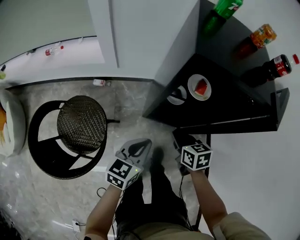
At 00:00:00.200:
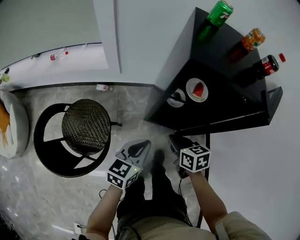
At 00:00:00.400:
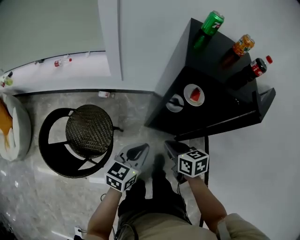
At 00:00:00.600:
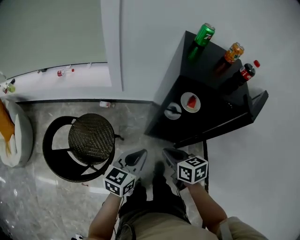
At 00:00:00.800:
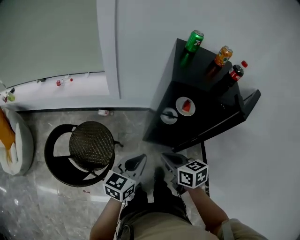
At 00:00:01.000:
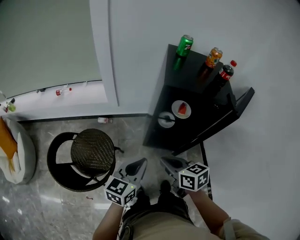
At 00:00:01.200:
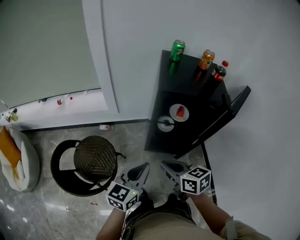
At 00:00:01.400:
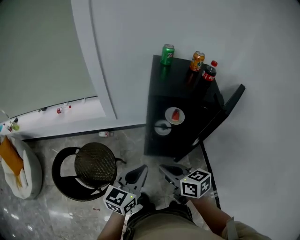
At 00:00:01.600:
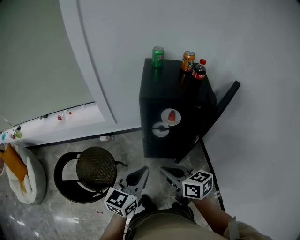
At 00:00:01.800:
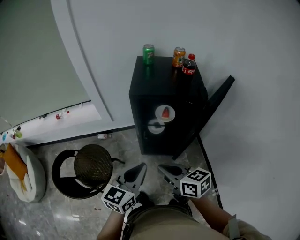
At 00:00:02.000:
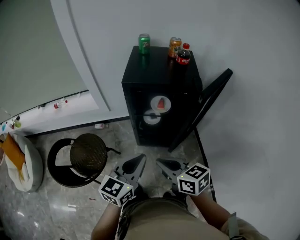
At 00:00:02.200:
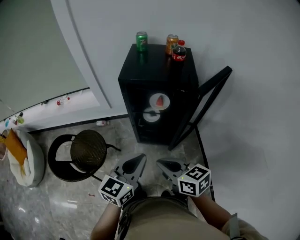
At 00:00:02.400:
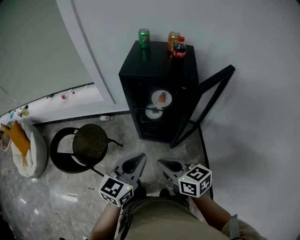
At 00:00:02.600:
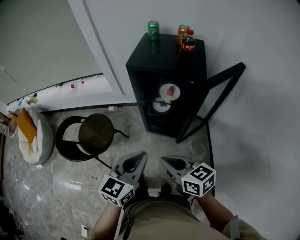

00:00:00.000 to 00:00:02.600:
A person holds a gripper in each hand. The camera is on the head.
00:00:00.000 to 00:00:01.200: The grippers both shift upward and backward by approximately 20 cm. The right gripper turns by roughly 20 degrees.
00:00:01.200 to 00:00:02.600: Both grippers travel together to the right and backward, about 20 cm.

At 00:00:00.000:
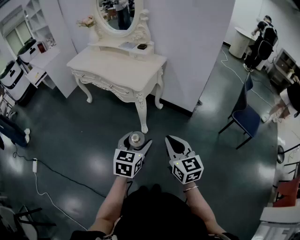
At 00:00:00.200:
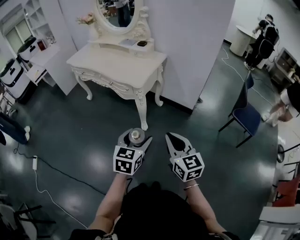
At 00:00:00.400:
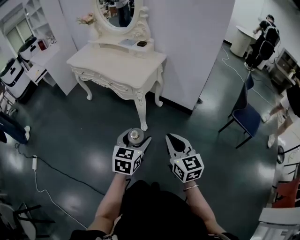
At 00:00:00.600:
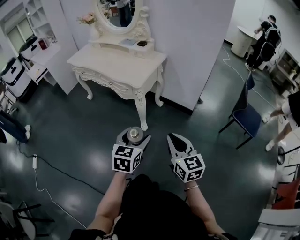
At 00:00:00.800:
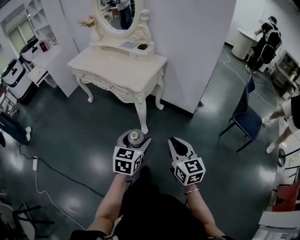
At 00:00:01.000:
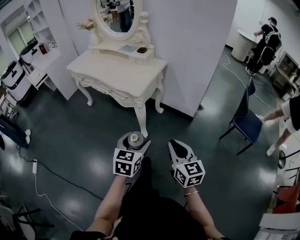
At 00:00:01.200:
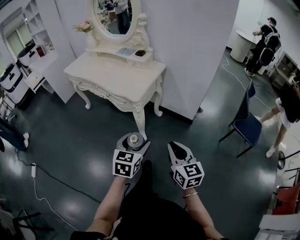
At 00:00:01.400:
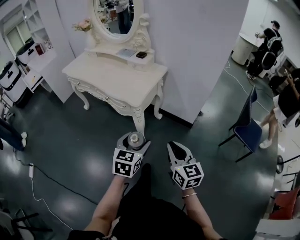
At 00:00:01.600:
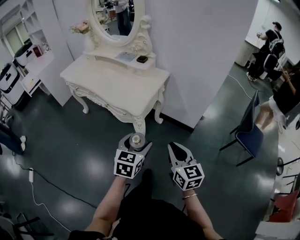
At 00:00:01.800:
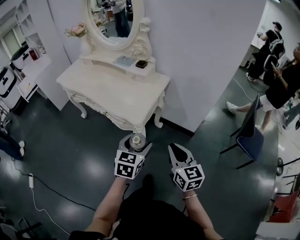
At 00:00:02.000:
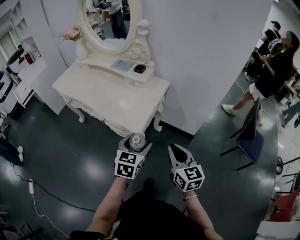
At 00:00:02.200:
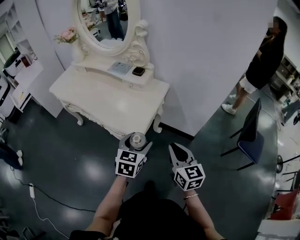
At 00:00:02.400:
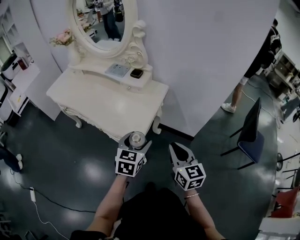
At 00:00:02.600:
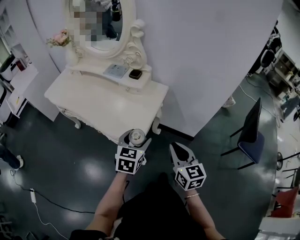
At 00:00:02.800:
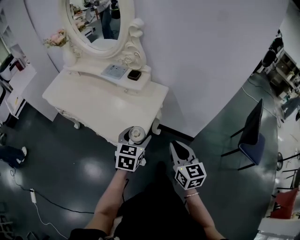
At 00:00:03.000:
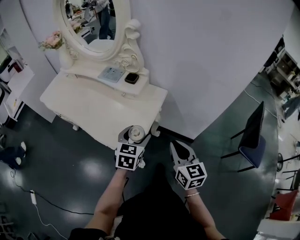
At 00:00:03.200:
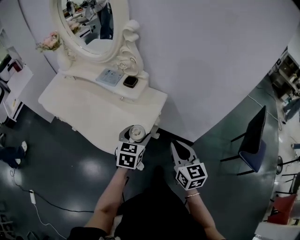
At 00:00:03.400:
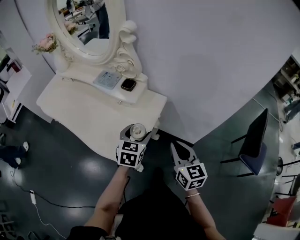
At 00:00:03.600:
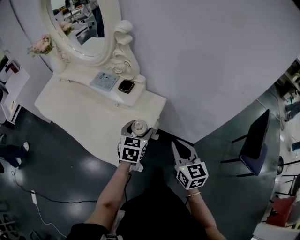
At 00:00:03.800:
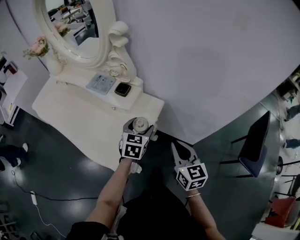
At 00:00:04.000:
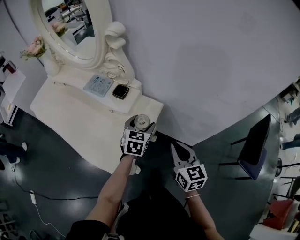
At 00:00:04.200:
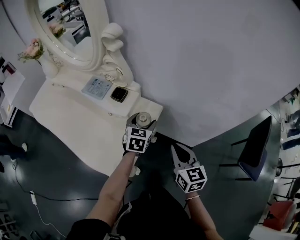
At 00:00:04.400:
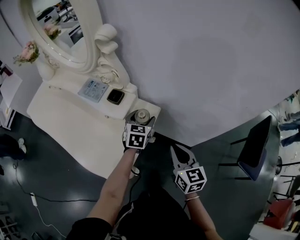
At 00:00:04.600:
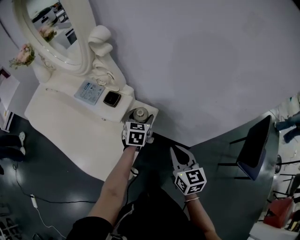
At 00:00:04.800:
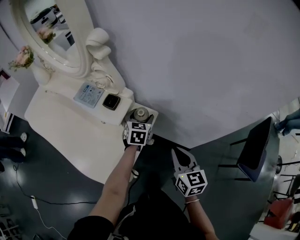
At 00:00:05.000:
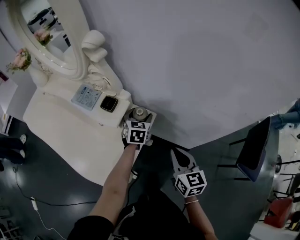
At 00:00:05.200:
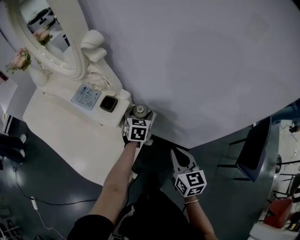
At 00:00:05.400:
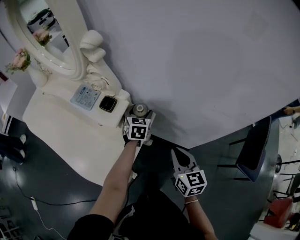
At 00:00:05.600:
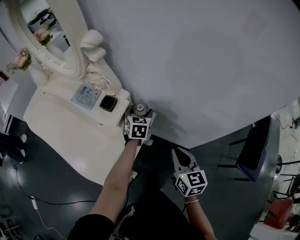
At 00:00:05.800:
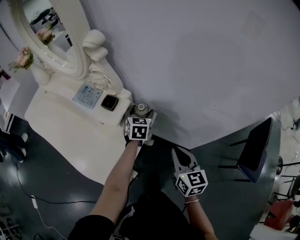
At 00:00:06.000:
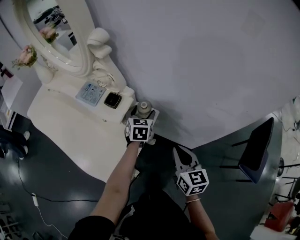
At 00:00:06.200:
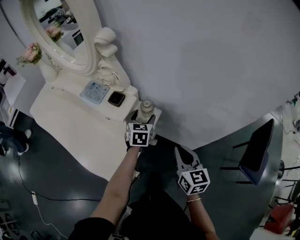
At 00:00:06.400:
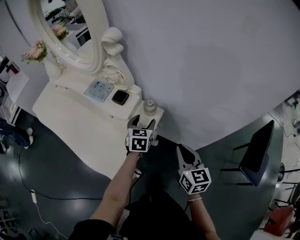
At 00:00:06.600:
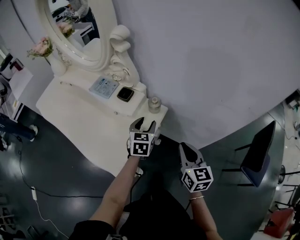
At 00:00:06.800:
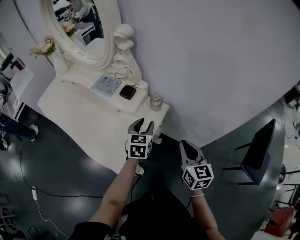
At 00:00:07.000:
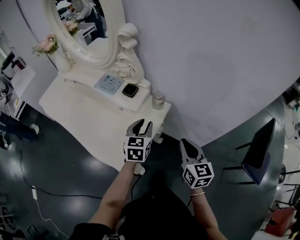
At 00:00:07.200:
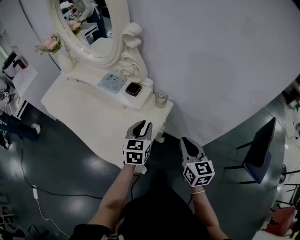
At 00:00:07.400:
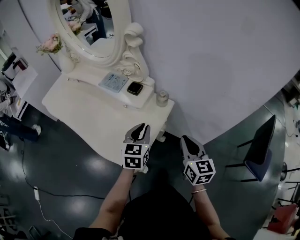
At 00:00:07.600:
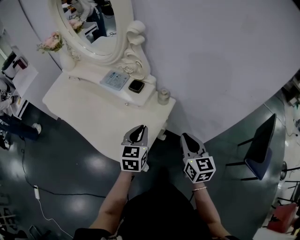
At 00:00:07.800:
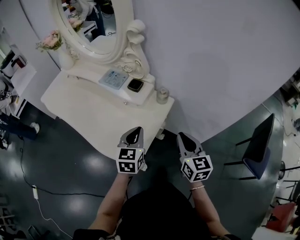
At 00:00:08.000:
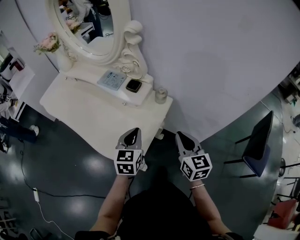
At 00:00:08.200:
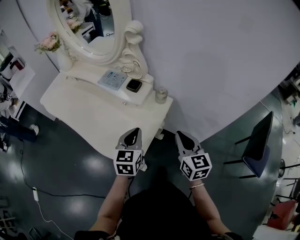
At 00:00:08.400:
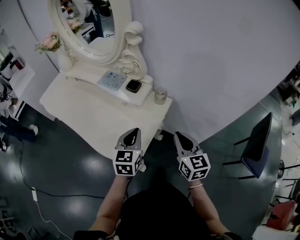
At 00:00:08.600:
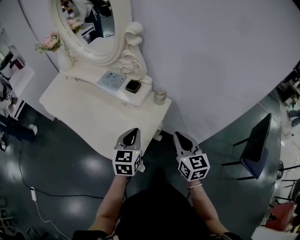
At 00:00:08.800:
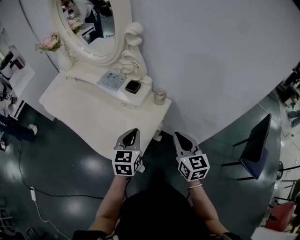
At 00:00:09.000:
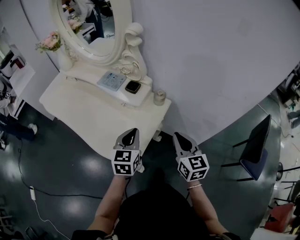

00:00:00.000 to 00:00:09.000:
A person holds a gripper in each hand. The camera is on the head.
00:00:00.000 to 00:00:01.600: Both grippers travel together forward, some 20 cm.
00:00:01.600 to 00:00:03.000: Both grippers move forward, approximately 25 cm.
00:00:03.000 to 00:00:04.400: The right gripper shifts some 15 cm forward and to the right. The left gripper shifts some 25 cm forward.
00:00:04.400 to 00:00:06.000: The left gripper shifts roughly 5 cm forward.
00:00:06.000 to 00:00:07.600: The left gripper travels backward and to the left by about 25 cm, and closes up. Meanwhile the right gripper moves to the left, roughly 5 cm.
00:00:07.600 to 00:00:09.000: The grippers move only a little.

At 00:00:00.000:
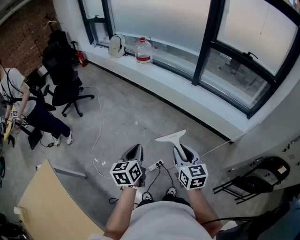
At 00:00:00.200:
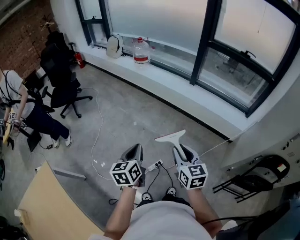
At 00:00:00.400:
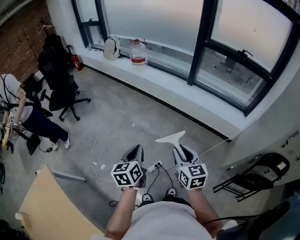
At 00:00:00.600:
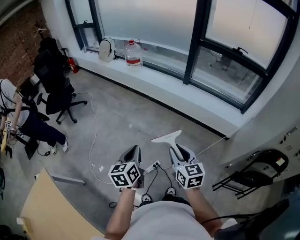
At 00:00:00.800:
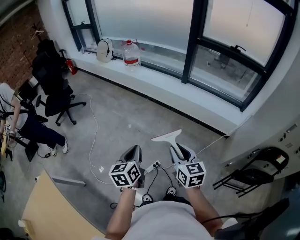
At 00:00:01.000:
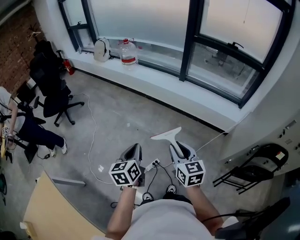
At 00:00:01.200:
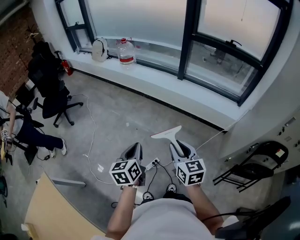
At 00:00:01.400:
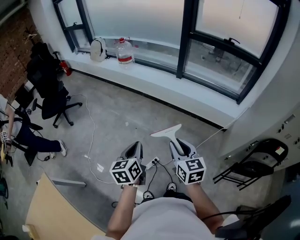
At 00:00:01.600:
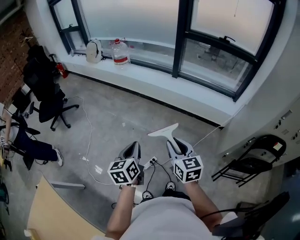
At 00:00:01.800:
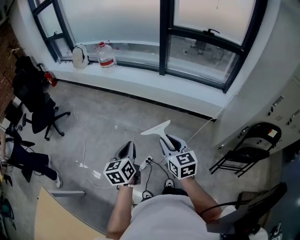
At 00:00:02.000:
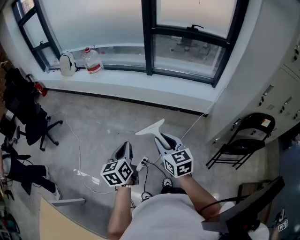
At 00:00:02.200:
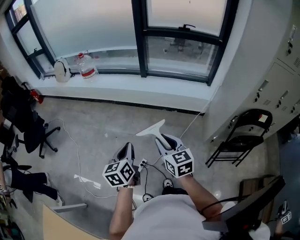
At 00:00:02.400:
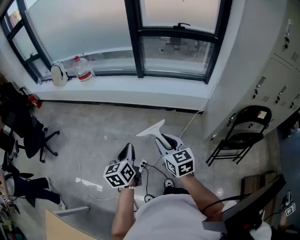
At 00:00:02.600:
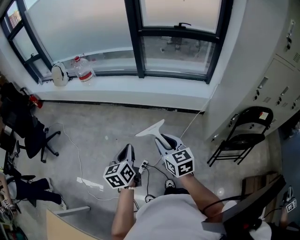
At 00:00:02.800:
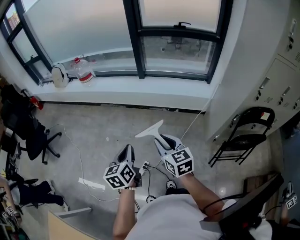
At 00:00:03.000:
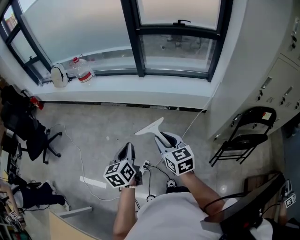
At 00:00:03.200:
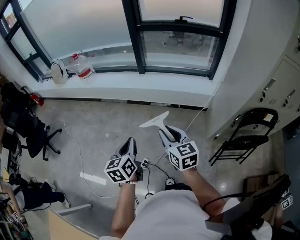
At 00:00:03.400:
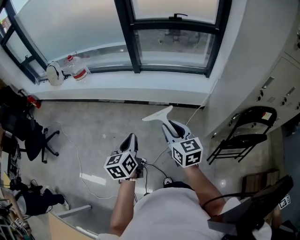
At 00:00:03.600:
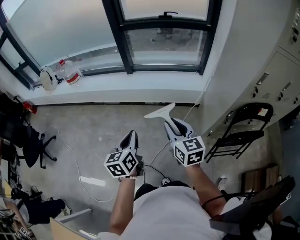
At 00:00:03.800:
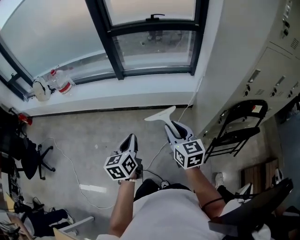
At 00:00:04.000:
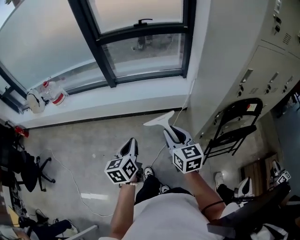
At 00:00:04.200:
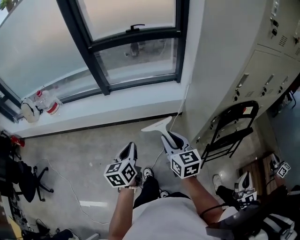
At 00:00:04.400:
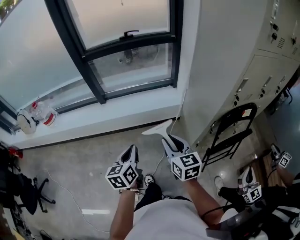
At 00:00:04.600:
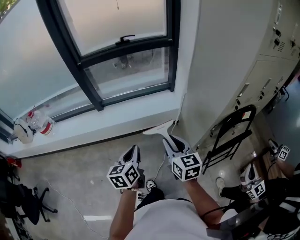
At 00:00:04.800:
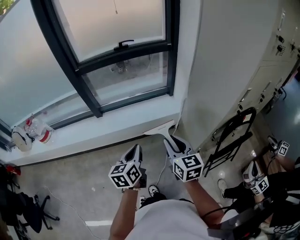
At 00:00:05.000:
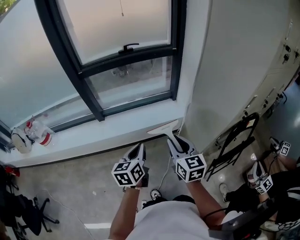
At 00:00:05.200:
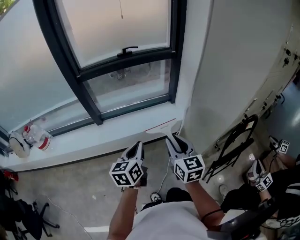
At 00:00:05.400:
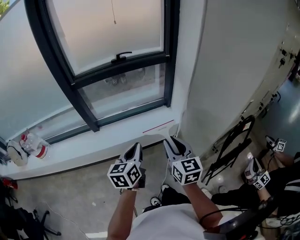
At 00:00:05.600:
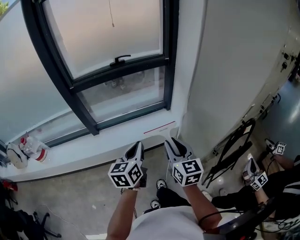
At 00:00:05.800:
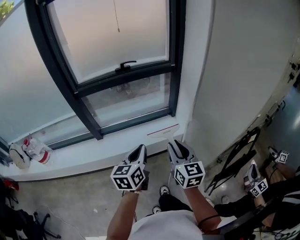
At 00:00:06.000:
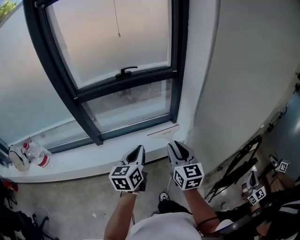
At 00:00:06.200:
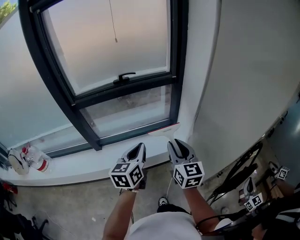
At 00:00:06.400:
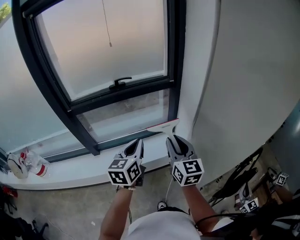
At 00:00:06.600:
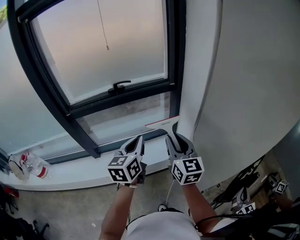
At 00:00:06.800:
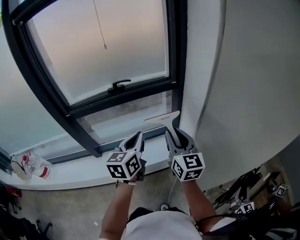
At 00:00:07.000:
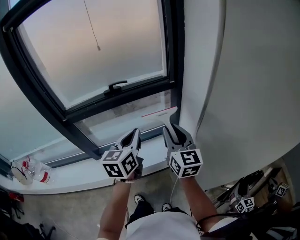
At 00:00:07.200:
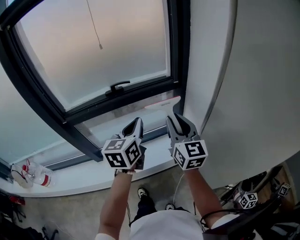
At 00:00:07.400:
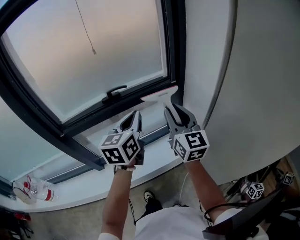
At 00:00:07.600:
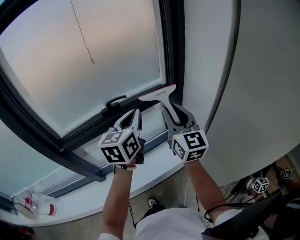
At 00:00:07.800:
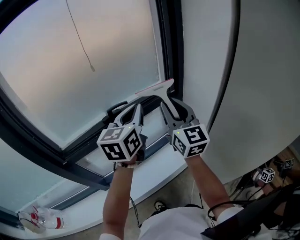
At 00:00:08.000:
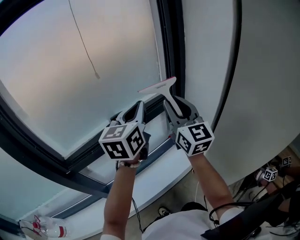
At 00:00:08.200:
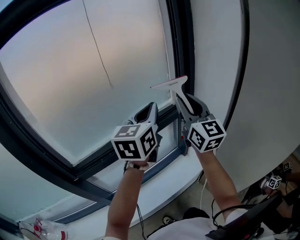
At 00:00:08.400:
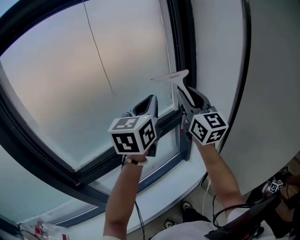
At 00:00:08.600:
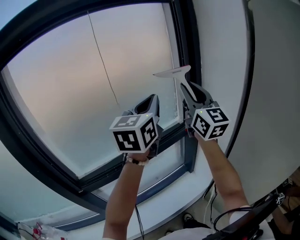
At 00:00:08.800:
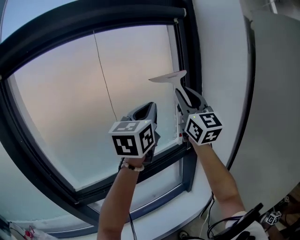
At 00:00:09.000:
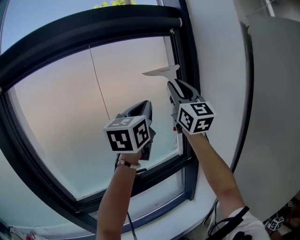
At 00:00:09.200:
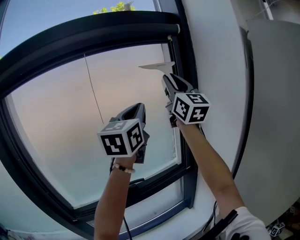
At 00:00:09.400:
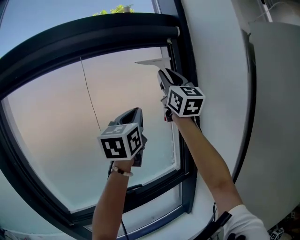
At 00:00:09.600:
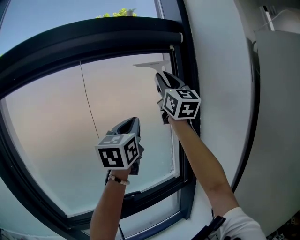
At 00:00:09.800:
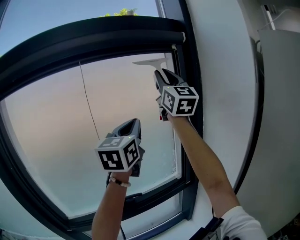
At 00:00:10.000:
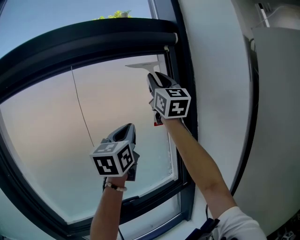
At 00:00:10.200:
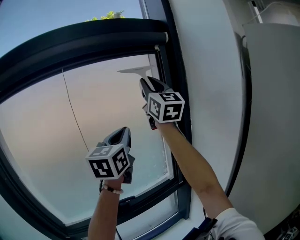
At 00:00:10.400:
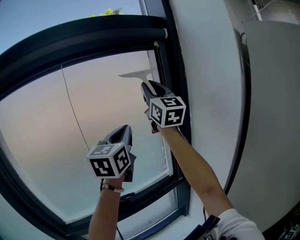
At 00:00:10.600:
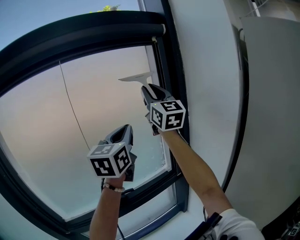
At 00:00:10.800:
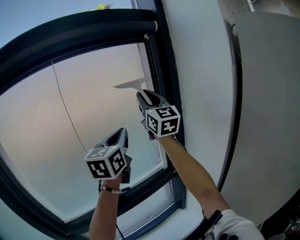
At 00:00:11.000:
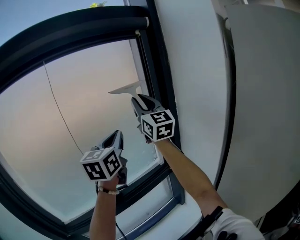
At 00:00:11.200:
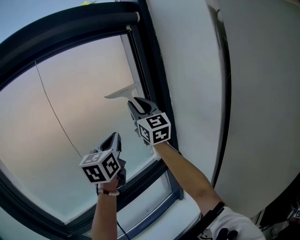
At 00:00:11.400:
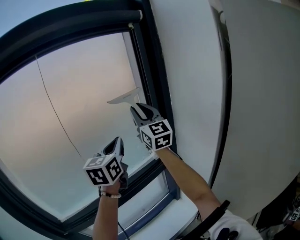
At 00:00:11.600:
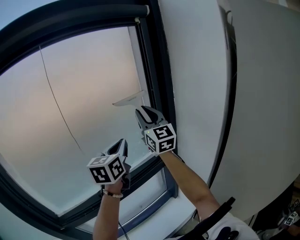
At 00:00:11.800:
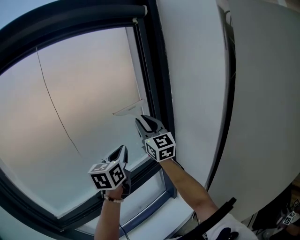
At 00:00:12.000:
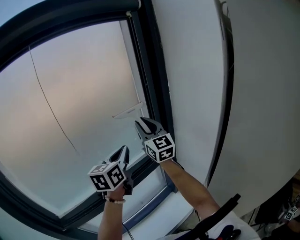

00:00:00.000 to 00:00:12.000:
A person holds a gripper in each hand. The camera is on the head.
00:00:00.000 to 00:00:01.600: The left gripper is displaced to the right by about 5 cm.
00:00:01.600 to 00:00:03.000: Both grippers travel together to the right and forward, approximately 15 cm.
00:00:03.000 to 00:00:04.400: The right gripper moves about 30 cm, and changes its angle by some 30 degrees; the left gripper shifts by some 30 cm, and swivels some 20 degrees.
00:00:04.400 to 00:00:06.000: The two grippers go about 30 cm forward.
00:00:06.000 to 00:00:07.600: The left gripper moves forward, about 35 cm. Meanwhile the right gripper shifts roughly 35 cm forward and upward, and rotates about 20 degrees.
00:00:07.600 to 00:00:09.000: Both grippers travel together upward and forward, approximately 35 cm. The left gripper swivels roughly 20 degrees; the right gripper swivels roughly 30 degrees.
00:00:09.000 to 00:00:10.400: The right gripper travels forward and upward by approximately 15 cm; the left gripper moves forward, approximately 5 cm.
00:00:10.400 to 00:00:12.000: Both grippers travel together downward, about 25 cm. The left gripper changes its angle by some 20 degrees.
